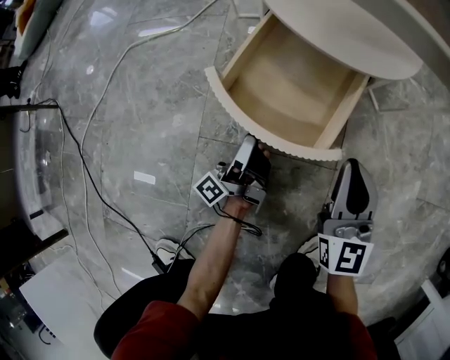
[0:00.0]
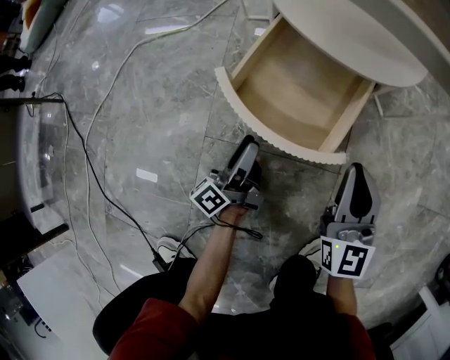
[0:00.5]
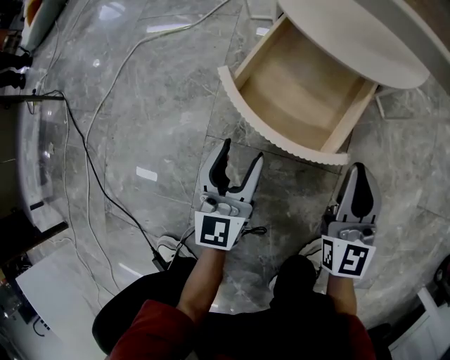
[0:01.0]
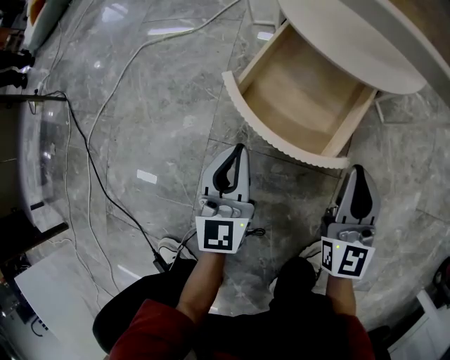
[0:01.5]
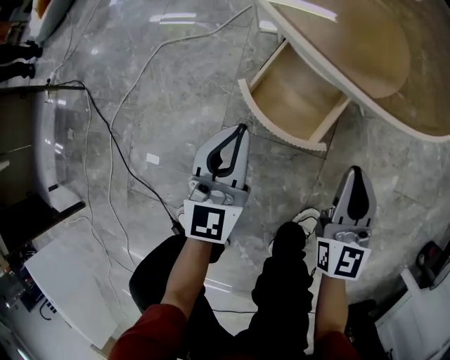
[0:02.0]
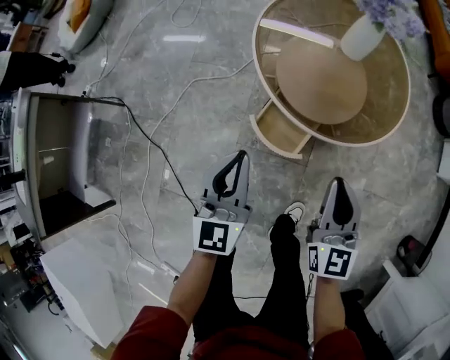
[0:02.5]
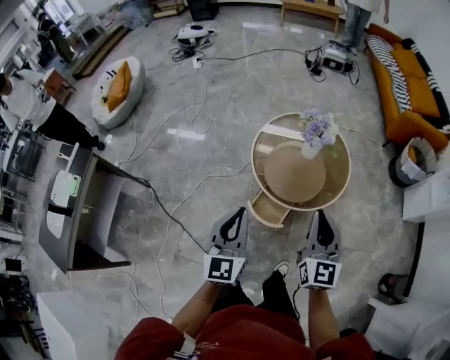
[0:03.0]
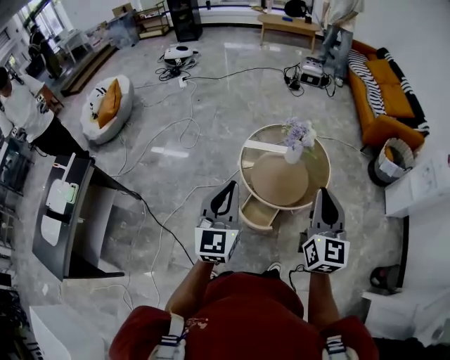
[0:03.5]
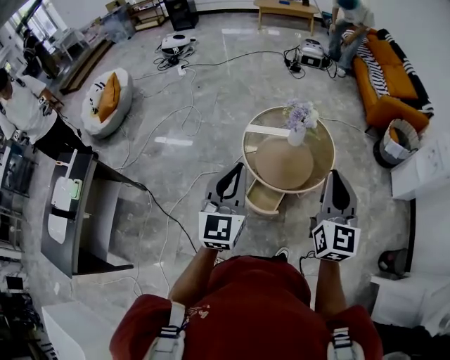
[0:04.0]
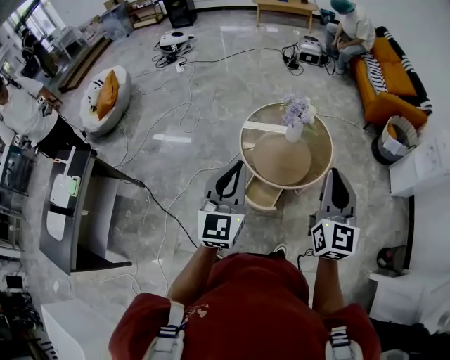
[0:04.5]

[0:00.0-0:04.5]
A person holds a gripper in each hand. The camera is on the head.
0:00.0 to 0:02.0: The right gripper moves upward, some 15 cm. Meanwhile the left gripper heads upward, covering approximately 30 cm, rolls clockwise, seen from behind, by roughly 100 degrees, and closes its fingers.
0:02.0 to 0:04.5: Both grippers travel together upward, roughly 70 cm.

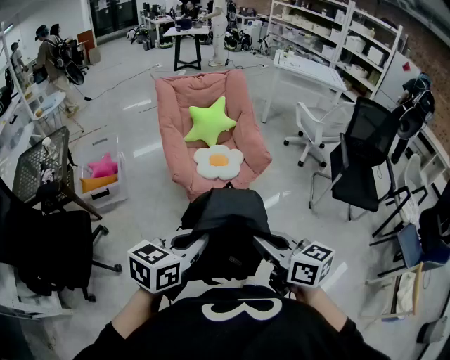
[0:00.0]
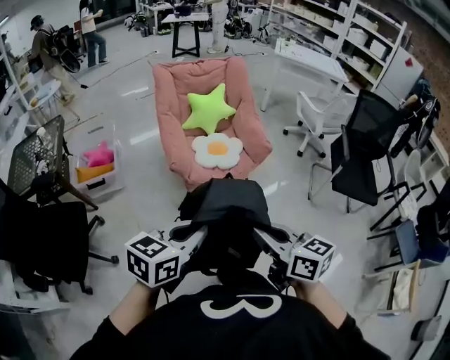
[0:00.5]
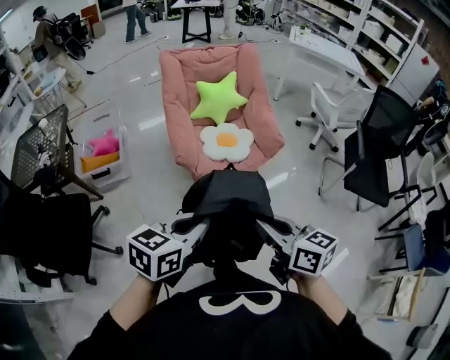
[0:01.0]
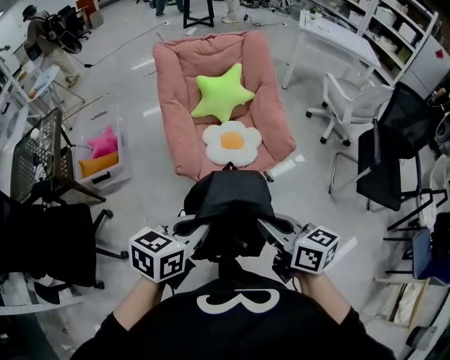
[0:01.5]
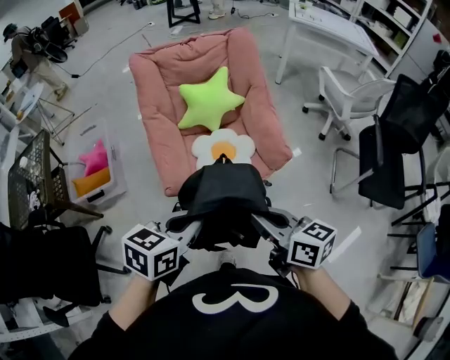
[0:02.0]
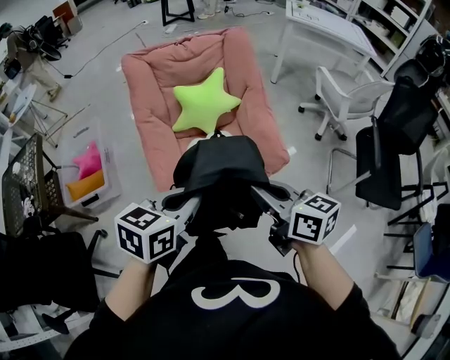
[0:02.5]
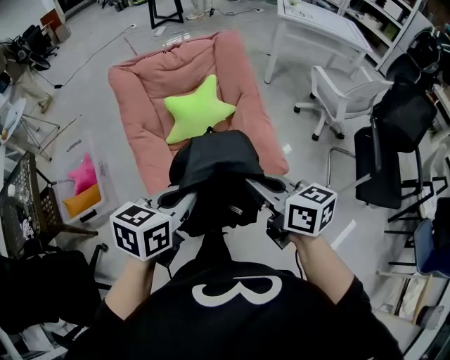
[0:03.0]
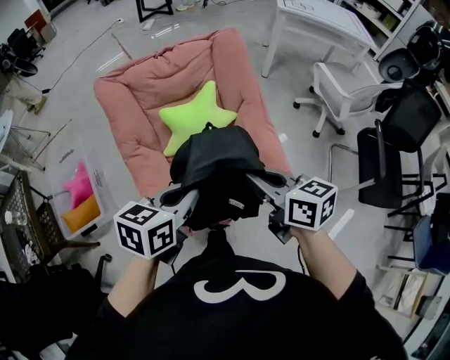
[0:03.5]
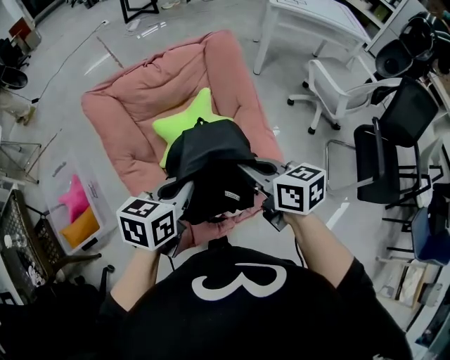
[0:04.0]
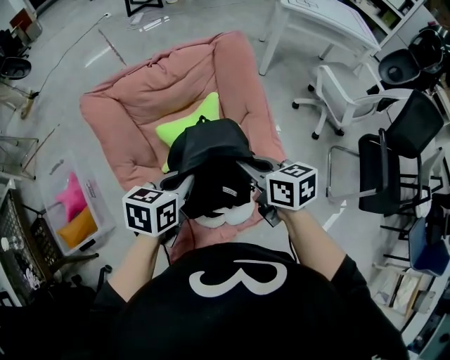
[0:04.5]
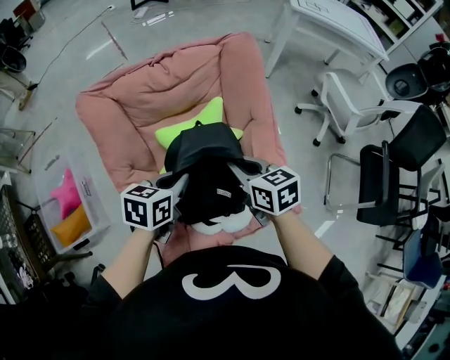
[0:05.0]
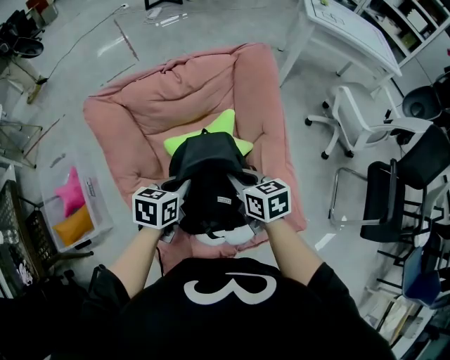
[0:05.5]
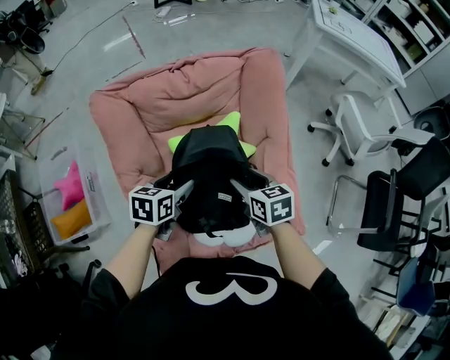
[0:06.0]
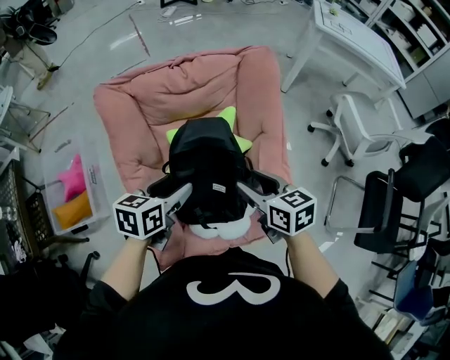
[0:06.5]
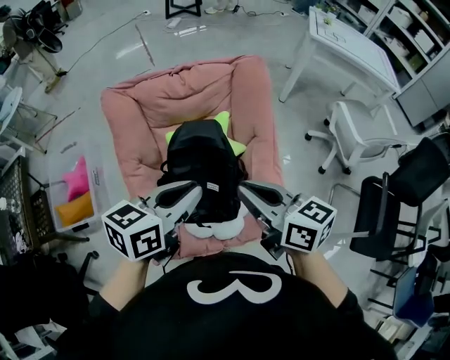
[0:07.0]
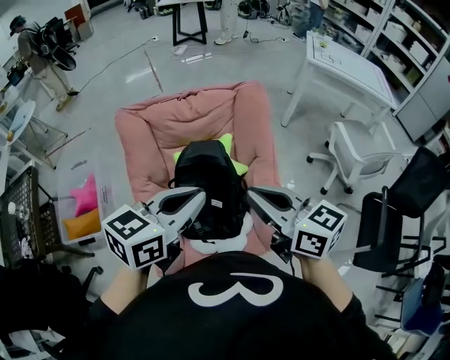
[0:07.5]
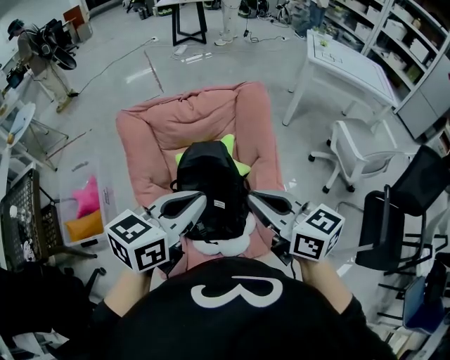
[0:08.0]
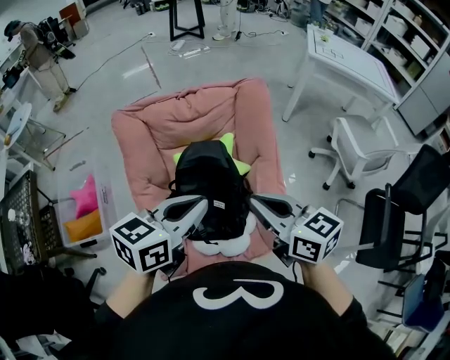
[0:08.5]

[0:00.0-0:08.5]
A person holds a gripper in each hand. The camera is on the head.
0:00.0 to 0:02.0: Both grippers move forward, some 35 cm.
0:02.0 to 0:04.0: The two grippers go roughly 40 cm forward.
0:04.0 to 0:06.5: The right gripper shifts roughly 10 cm forward and downward, and opens its fingers, while the left gripper heads forward, downward and to the left, covering some 15 cm, and opens up.
0:06.5 to 0:08.5: The right gripper shifts some 15 cm upward and backward, and closes, while the left gripper goes roughly 20 cm upward and to the right, turns by about 20 degrees, and closes.

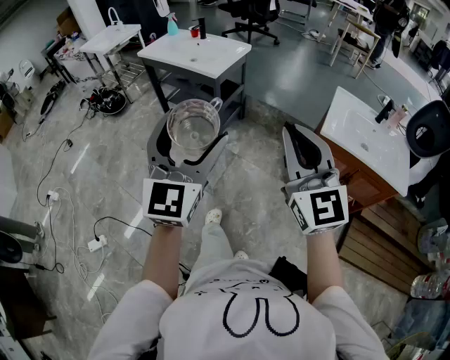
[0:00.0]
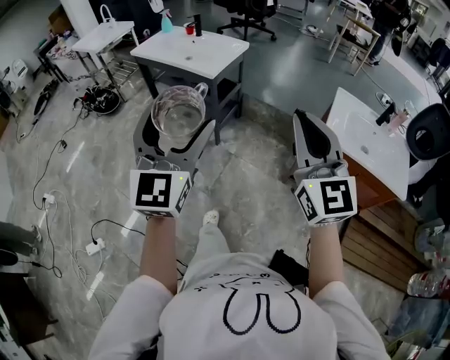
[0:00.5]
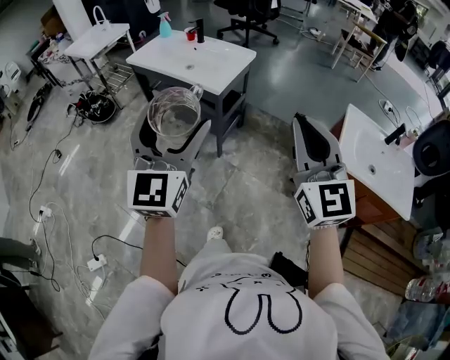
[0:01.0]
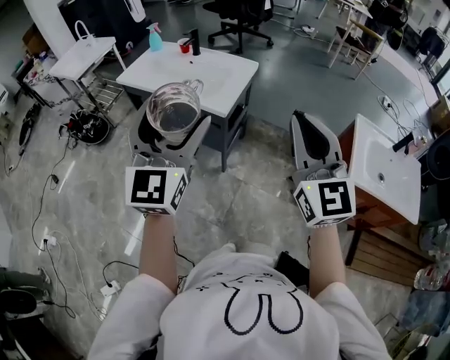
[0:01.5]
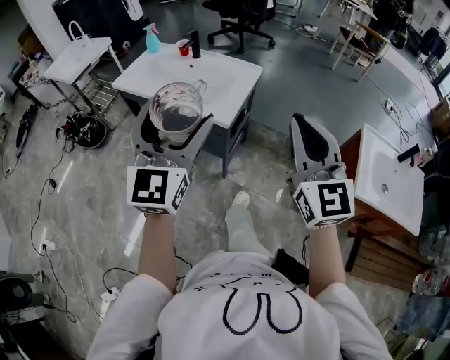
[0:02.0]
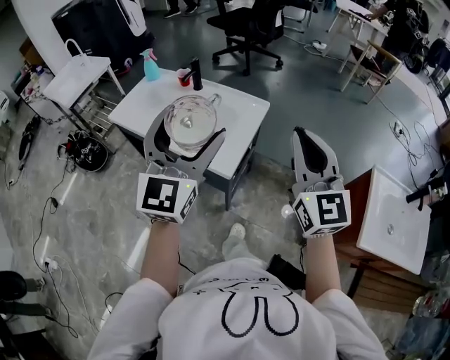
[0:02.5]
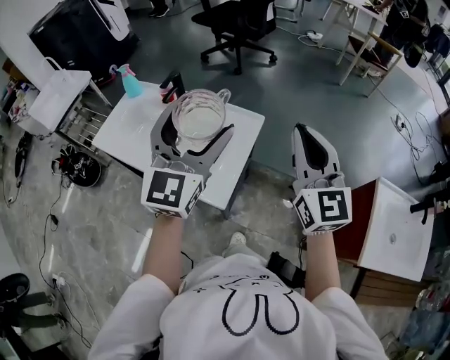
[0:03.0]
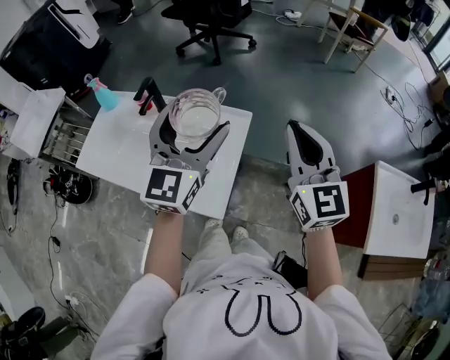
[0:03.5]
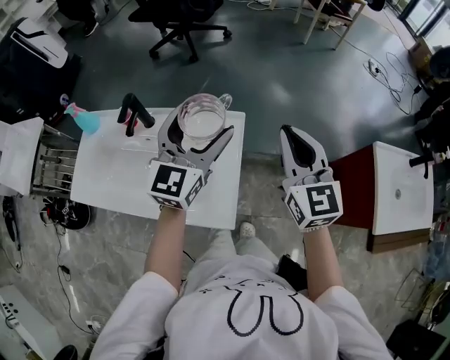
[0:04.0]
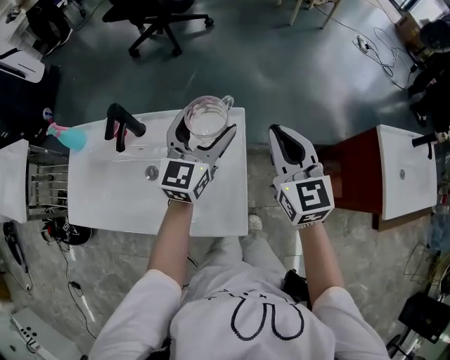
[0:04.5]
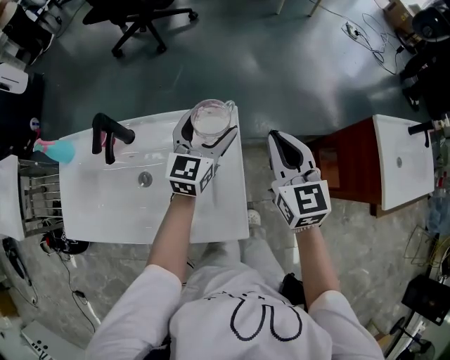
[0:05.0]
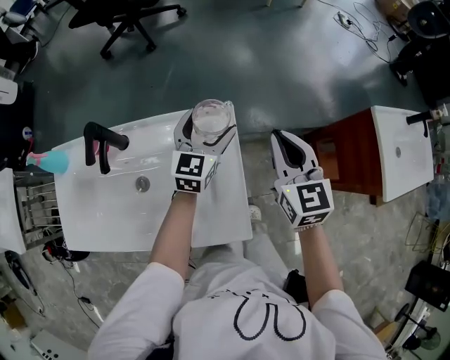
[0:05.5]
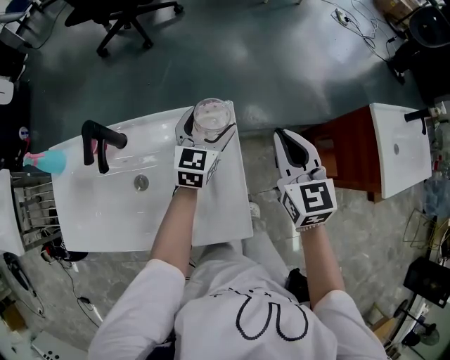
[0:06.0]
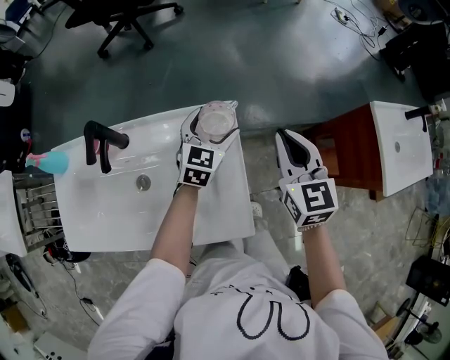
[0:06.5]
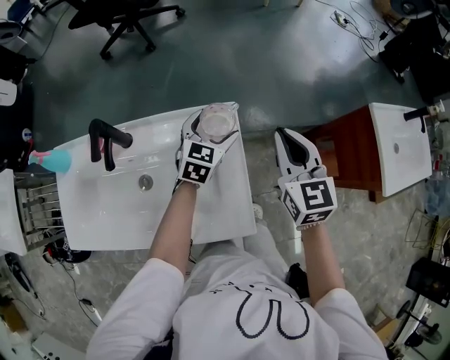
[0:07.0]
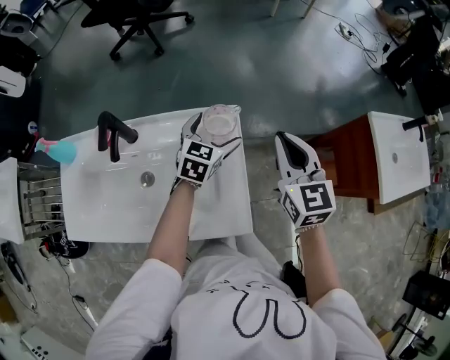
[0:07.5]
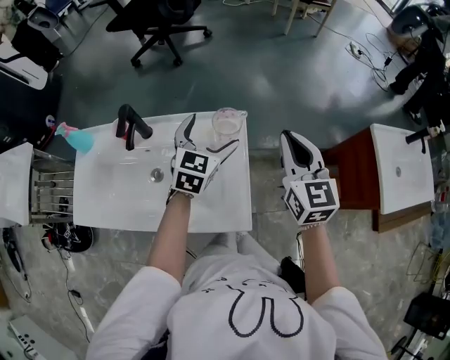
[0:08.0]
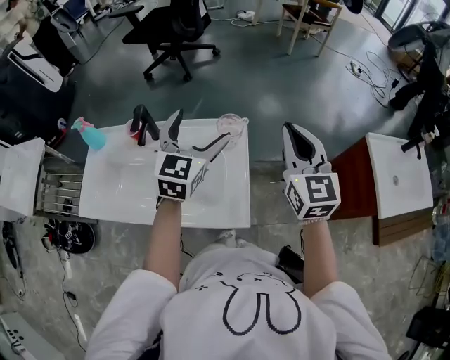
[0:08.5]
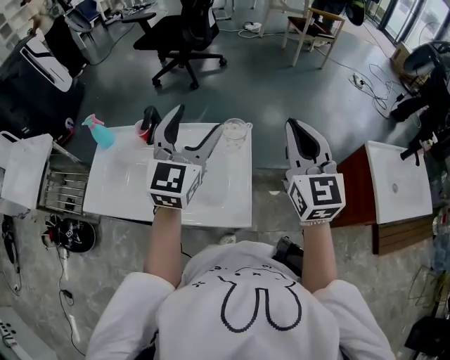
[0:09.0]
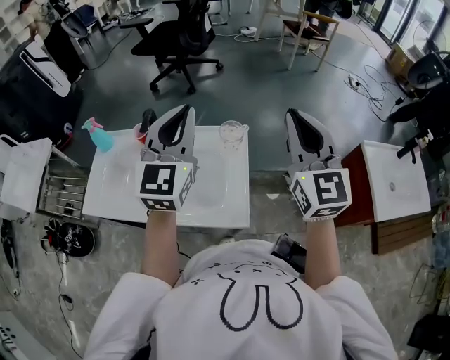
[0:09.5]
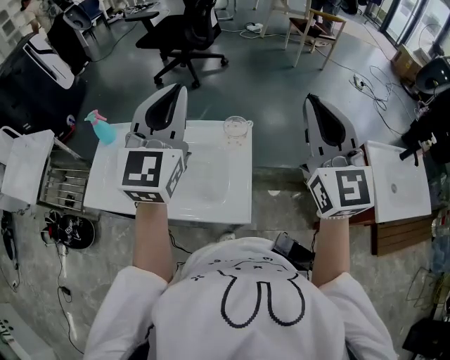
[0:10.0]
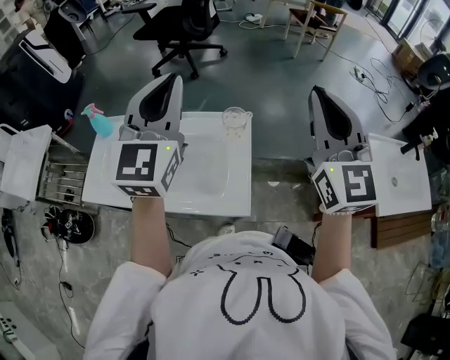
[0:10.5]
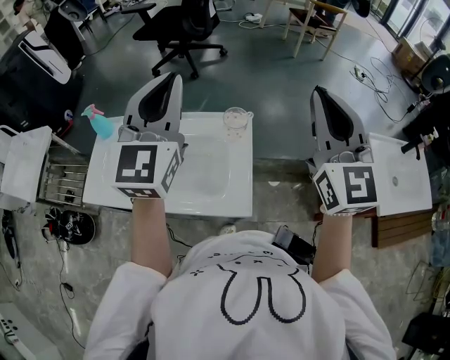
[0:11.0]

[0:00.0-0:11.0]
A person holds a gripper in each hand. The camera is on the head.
0:00.0 to 0:02.0: The pair of grippers is taken forward, some 40 cm.
0:02.0 to 0:03.5: The grippers both shift forward by about 35 cm.
0:03.5 to 0:05.5: The left gripper shifts about 30 cm downward and forward, and changes its angle by some 30 degrees; the right gripper is displaced downward and forward by about 15 cm, and turns by approximately 30 degrees.
0:05.5 to 0:07.5: The grippers move only a little.
0:07.5 to 0:09.0: The left gripper goes some 30 cm upward and backward, and angles its fingers upward, by some 30 degrees. Meanwhile the right gripper travels upward and backward by some 20 cm, and swivels some 20 degrees.
0:09.0 to 0:11.0: Both grippers move upward, some 10 cm. The left gripper closes.

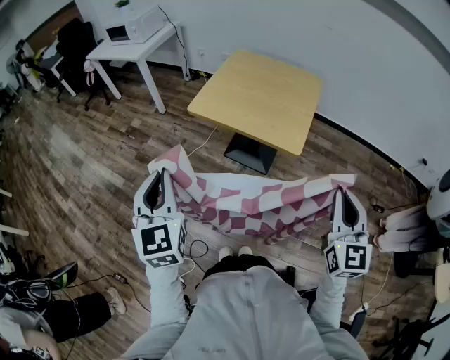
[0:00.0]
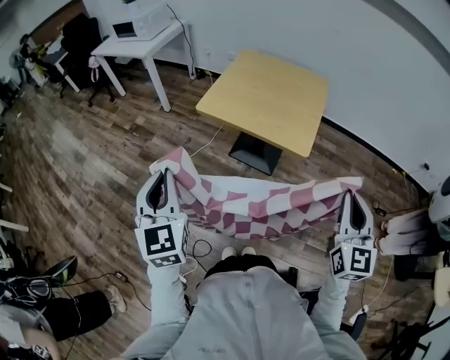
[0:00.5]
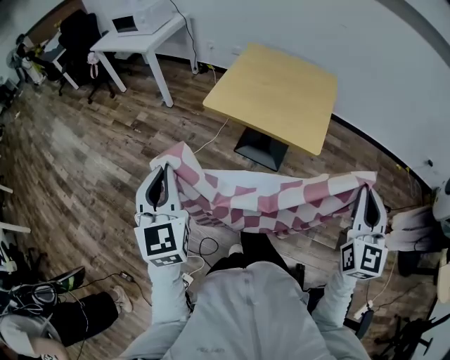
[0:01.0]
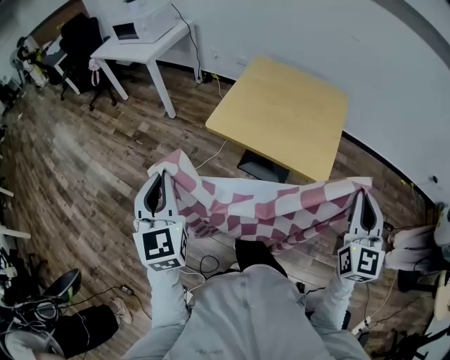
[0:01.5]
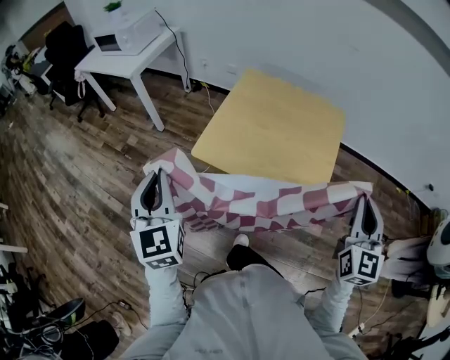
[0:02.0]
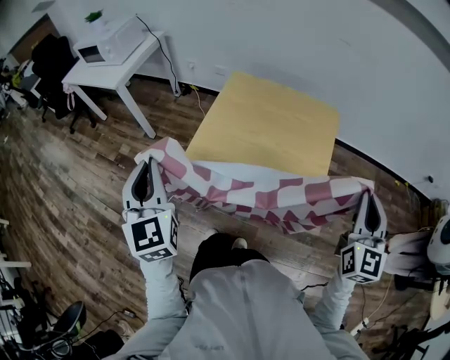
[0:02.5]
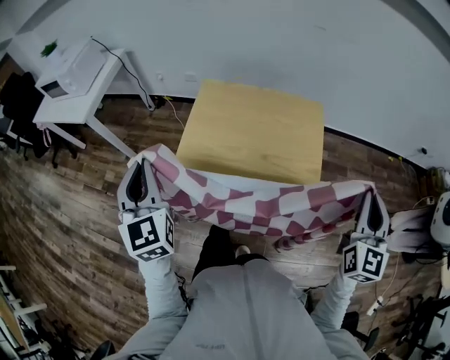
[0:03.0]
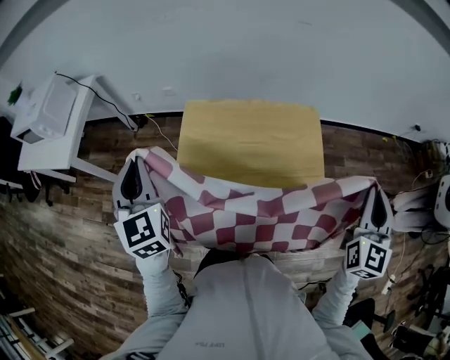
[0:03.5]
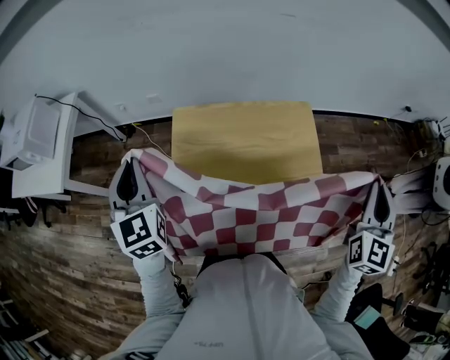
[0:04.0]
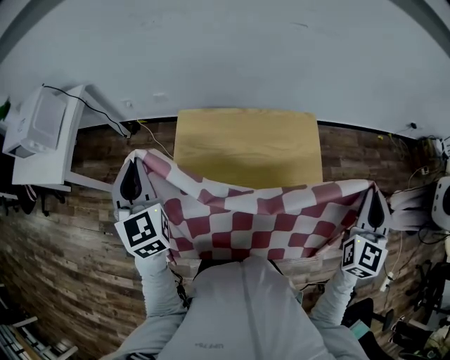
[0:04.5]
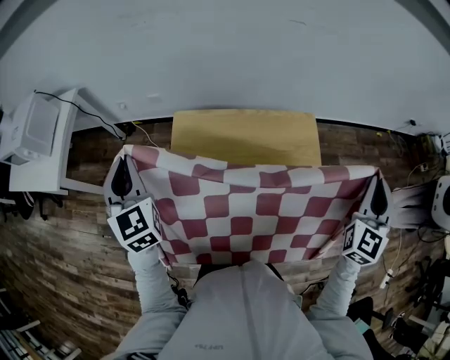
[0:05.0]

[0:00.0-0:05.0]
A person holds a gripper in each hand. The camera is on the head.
0:00.0 to 0:02.5: The grippers both shift forward by approximately 30 cm.
0:02.5 to 0:05.0: The right gripper goes approximately 20 cm forward, and turns by some 30 degrees. The left gripper heads forward, covering some 40 cm.
